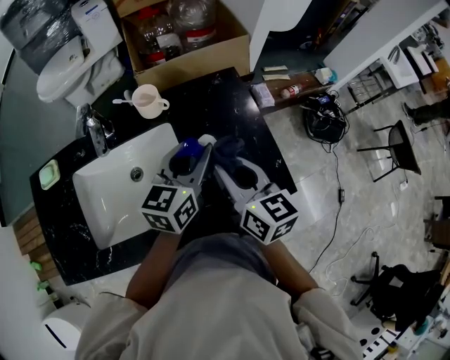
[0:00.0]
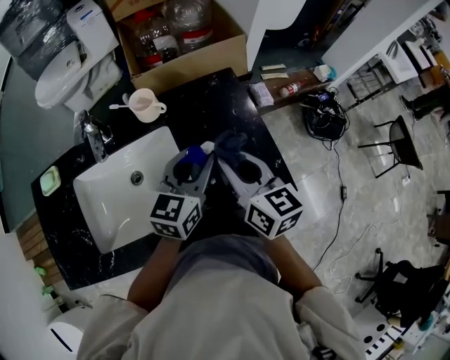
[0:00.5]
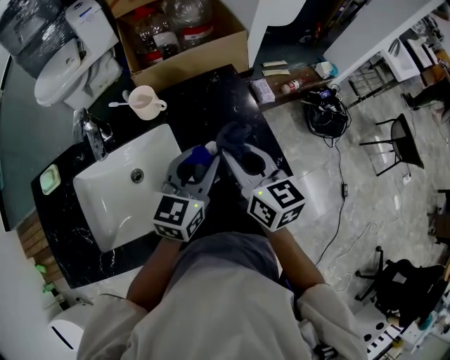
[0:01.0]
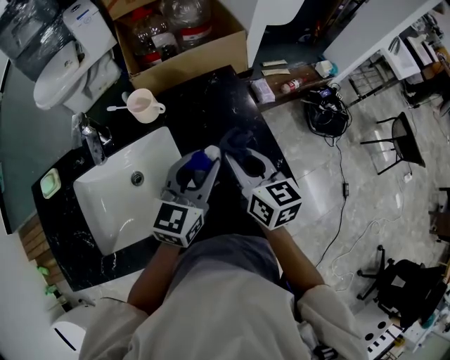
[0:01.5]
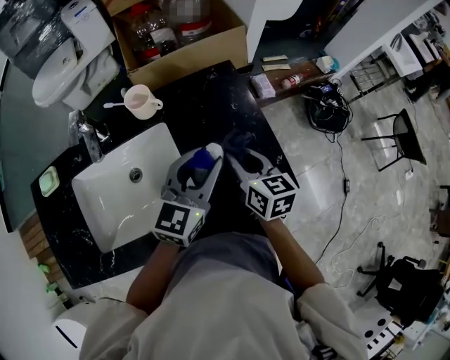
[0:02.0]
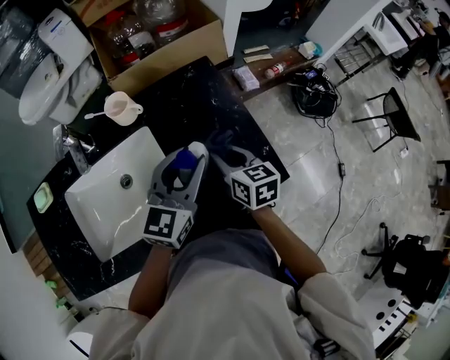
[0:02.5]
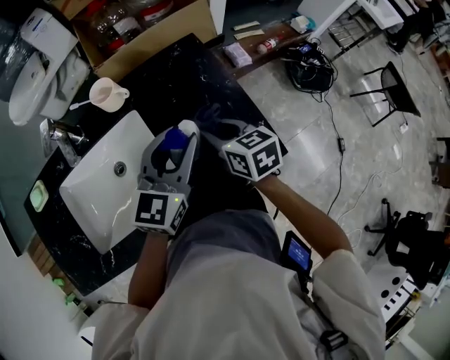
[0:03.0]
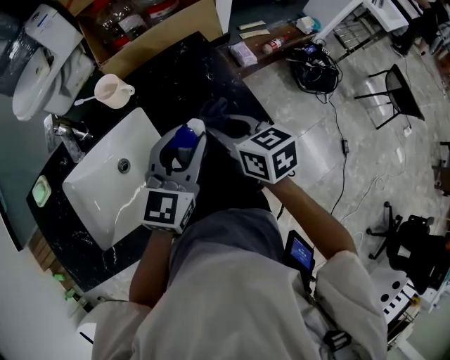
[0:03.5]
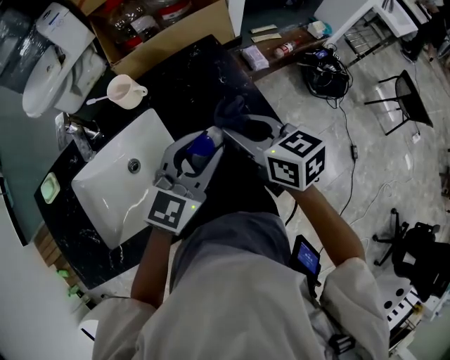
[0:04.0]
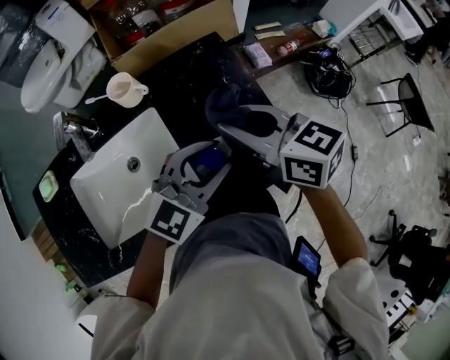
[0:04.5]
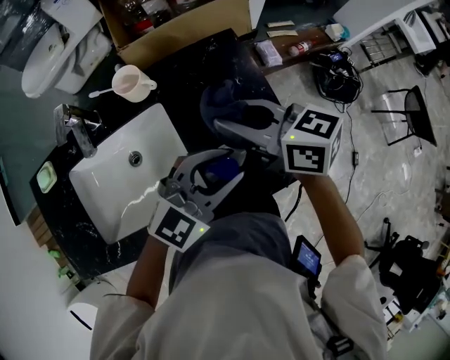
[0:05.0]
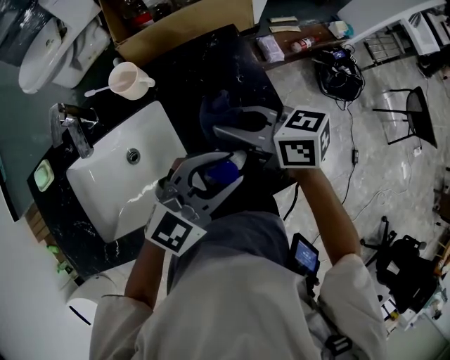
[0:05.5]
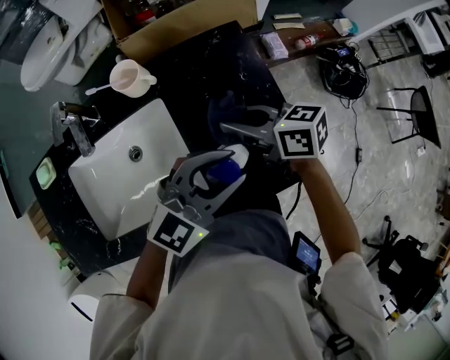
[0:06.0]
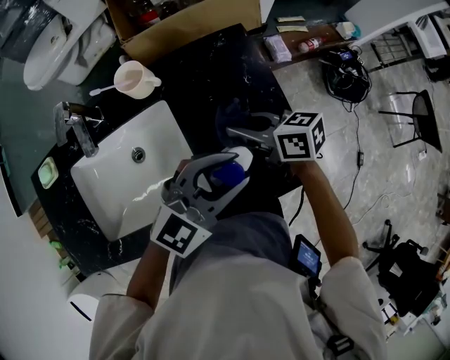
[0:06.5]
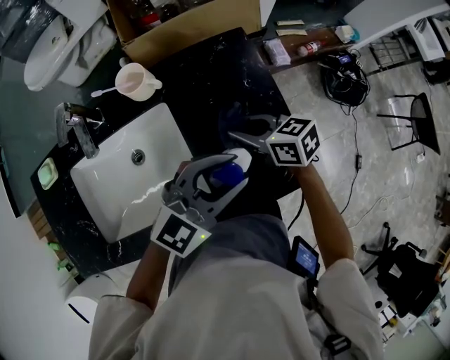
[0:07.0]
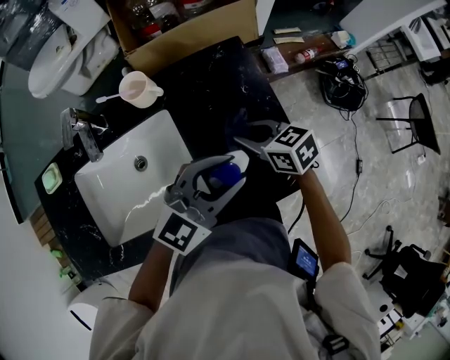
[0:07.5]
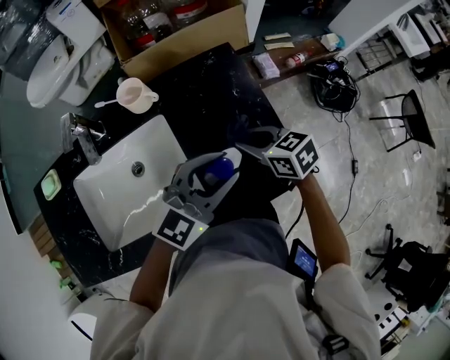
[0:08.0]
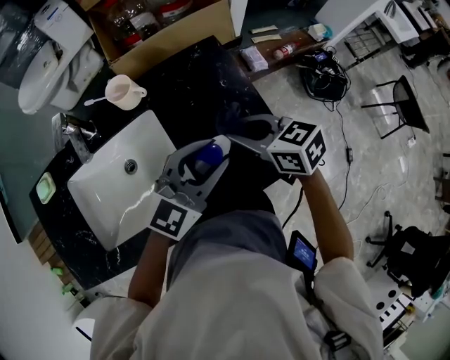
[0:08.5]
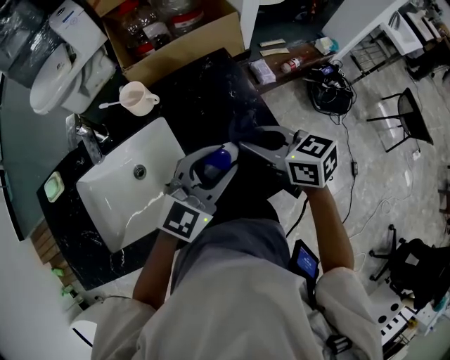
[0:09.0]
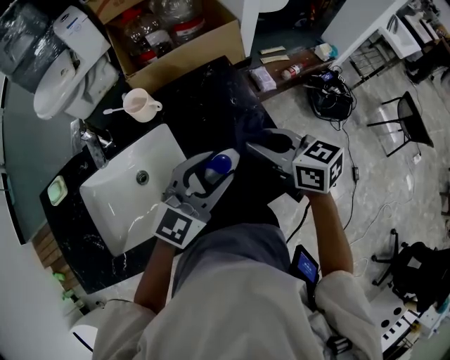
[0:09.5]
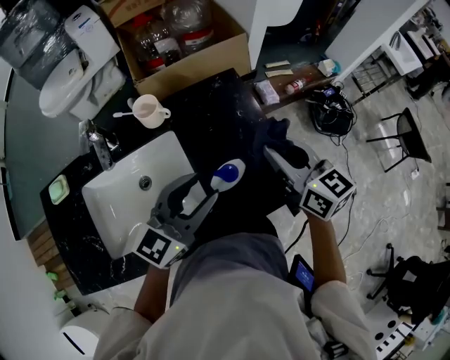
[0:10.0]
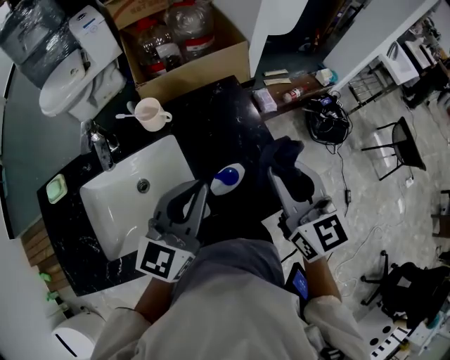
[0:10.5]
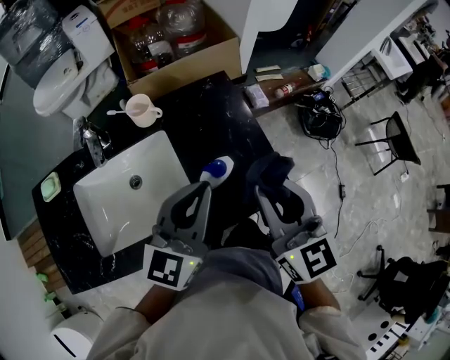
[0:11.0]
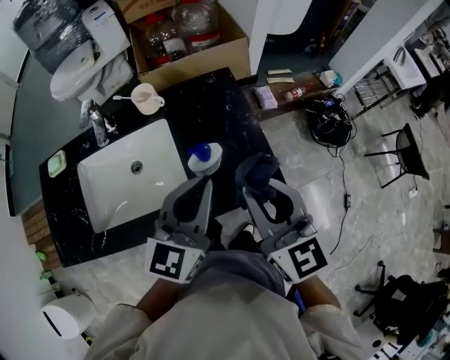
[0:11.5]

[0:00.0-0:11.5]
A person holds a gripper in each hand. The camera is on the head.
0:00.0 to 0:02.0: The right gripper heads downward, covering some 10 cm.
0:02.0 to 0:04.0: The right gripper goes about 5 cm upward.
0:04.0 to 0:06.0: The right gripper ends up about 10 cm from where it was, and rotates some 30 degrees.
0:06.0 to 0:07.5: The right gripper travels downward by some 5 cm, and changes its angle by some 20 degrees.
0:07.5 to 0:09.5: The right gripper goes about 10 cm upward.
0:09.5 to 0:11.5: The left gripper goes roughly 10 cm upward and backward, swivels roughly 30 degrees, and closes up. Meanwhile the right gripper heads backward and upward, covering about 15 cm, and swivels approximately 30 degrees.

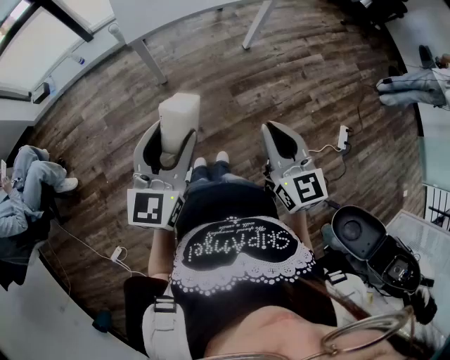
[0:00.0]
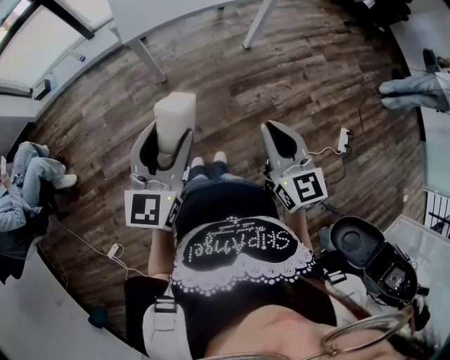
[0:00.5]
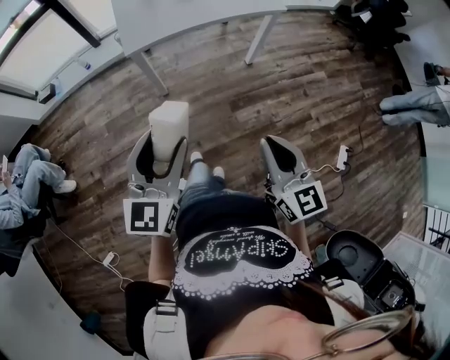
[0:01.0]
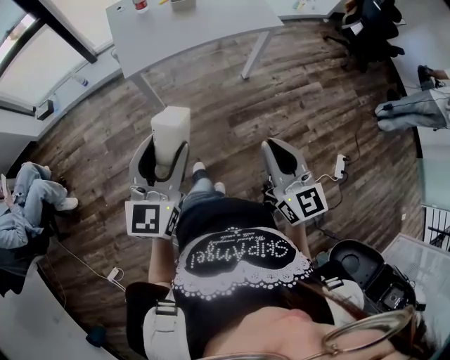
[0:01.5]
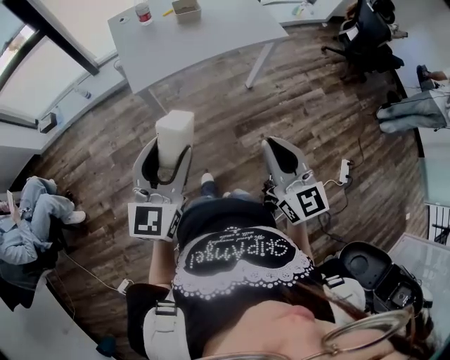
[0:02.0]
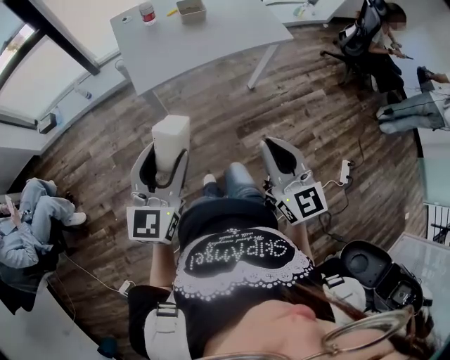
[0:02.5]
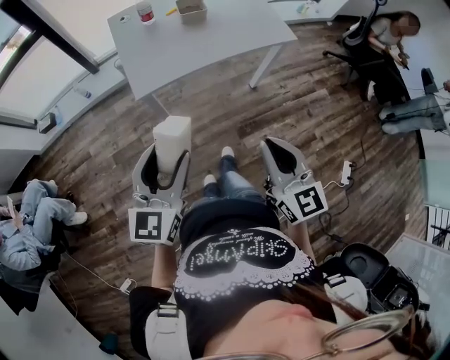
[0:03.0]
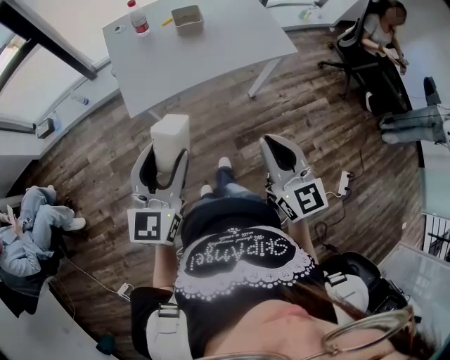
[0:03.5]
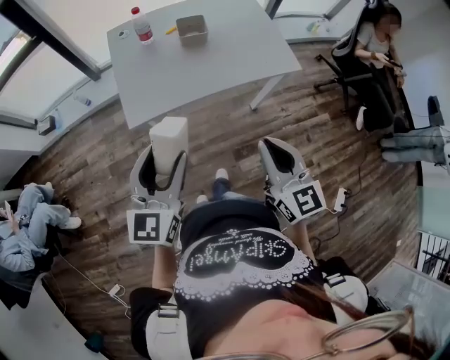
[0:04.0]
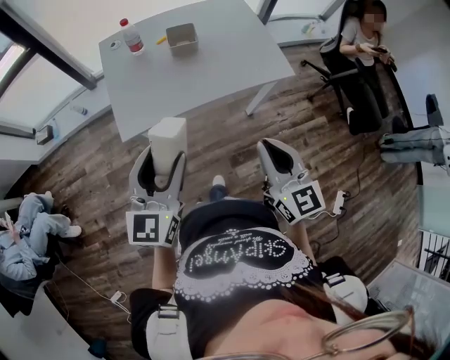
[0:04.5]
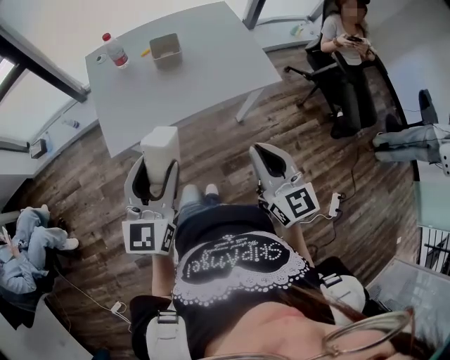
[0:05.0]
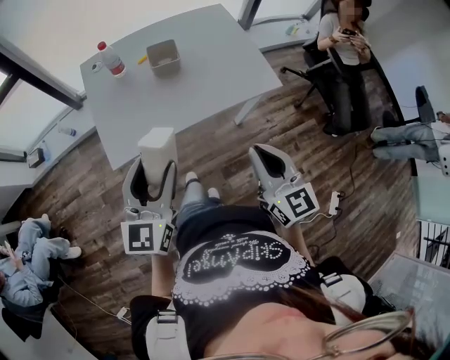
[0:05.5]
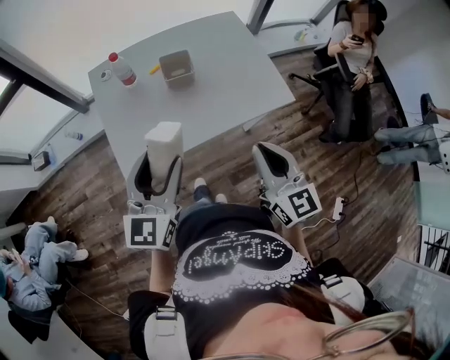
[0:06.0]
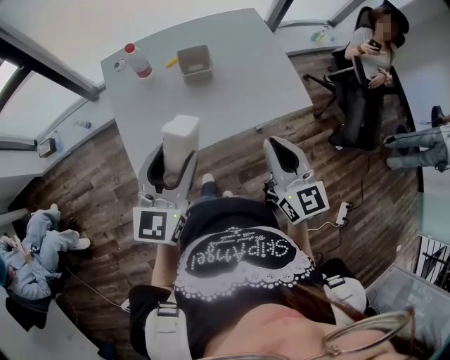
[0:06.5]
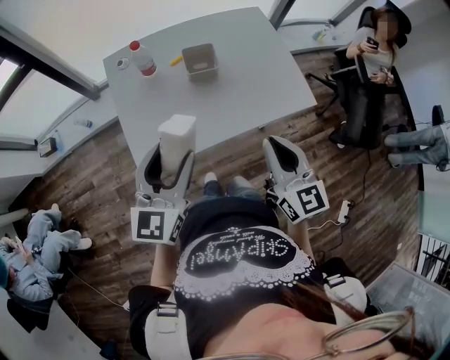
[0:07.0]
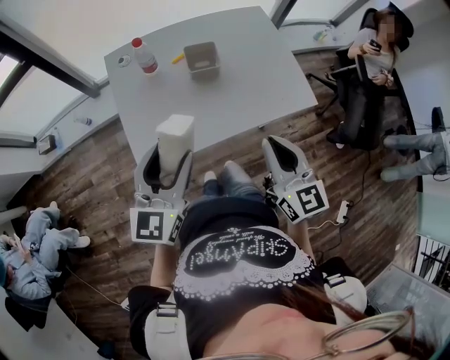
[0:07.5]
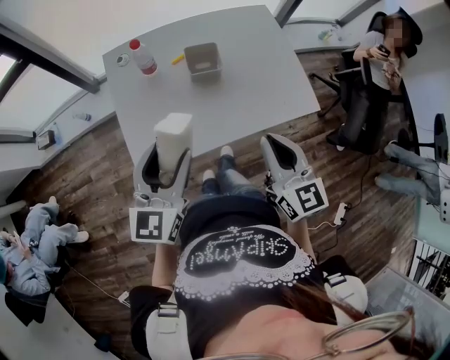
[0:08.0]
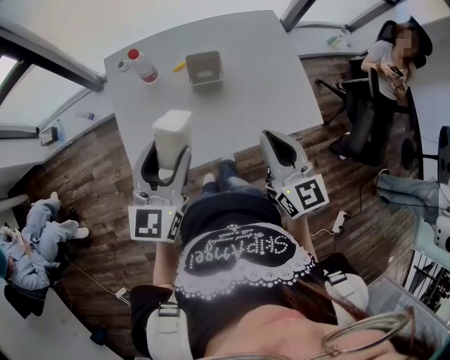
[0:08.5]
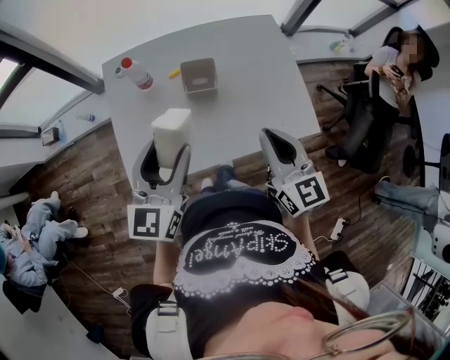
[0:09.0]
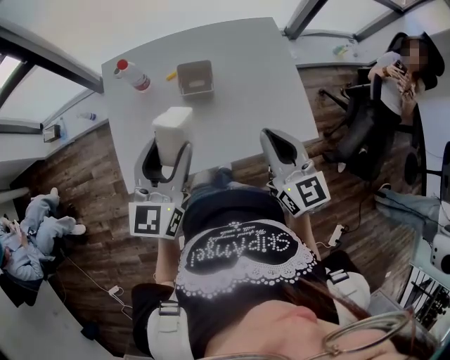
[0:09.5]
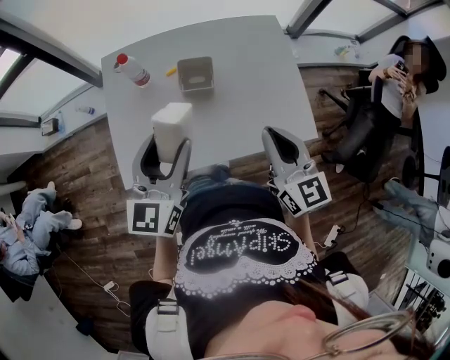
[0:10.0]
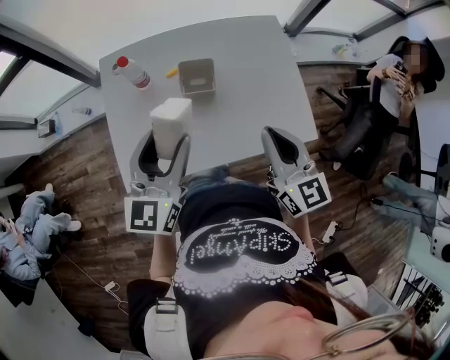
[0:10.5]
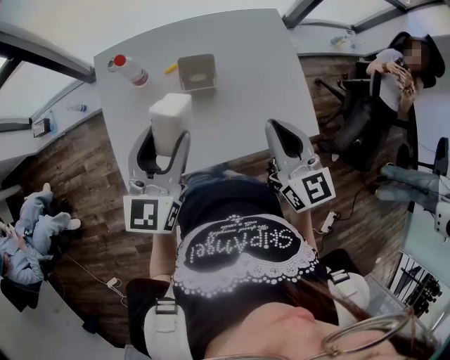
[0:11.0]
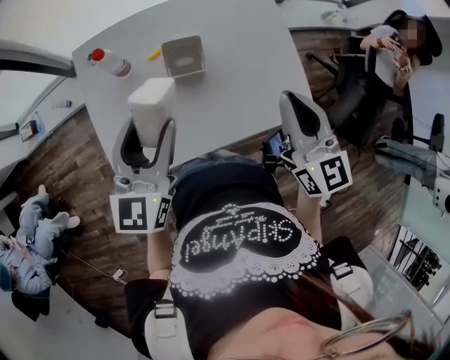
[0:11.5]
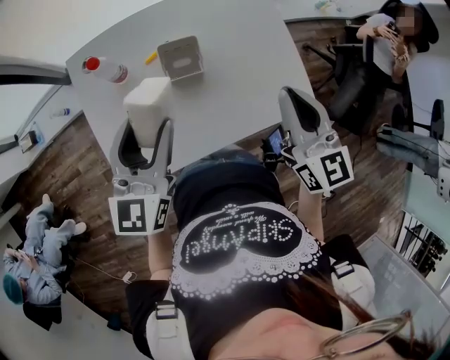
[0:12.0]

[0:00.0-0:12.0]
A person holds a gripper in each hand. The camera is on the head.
0:00.0 to 0:02.0: The grippers both shift forward by about 10 cm.
0:02.0 to 0:04.0: The grippers both shift forward by some 15 cm.
0:04.0 to 0:06.0: Both grippers travel together forward, approximately 15 cm.
0:06.0 to 0:08.0: The right gripper goes approximately 5 cm forward. Meanwhile the left gripper moves about 5 cm.
0:08.0 to 0:10.0: The two grippers go about 10 cm forward and to the right.
0:10.0 to 0:12.0: The two grippers go approximately 10 cm forward.

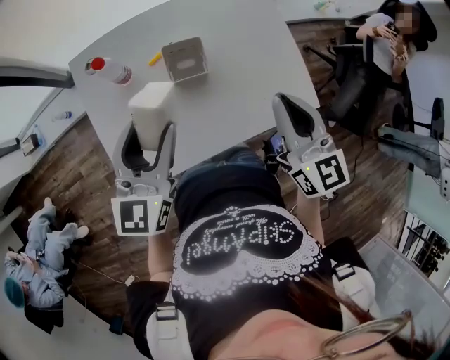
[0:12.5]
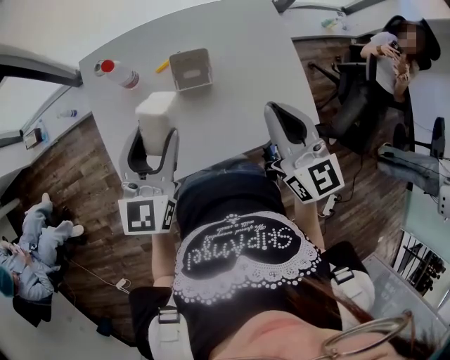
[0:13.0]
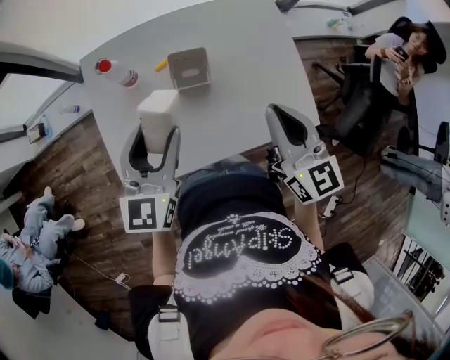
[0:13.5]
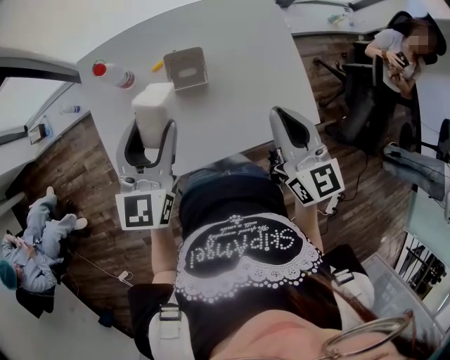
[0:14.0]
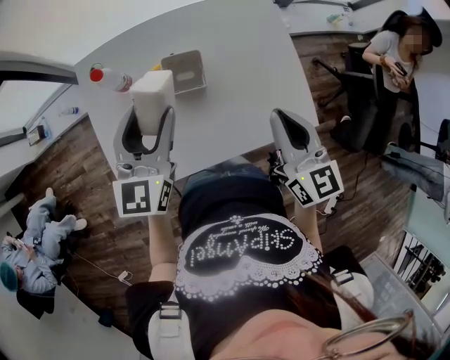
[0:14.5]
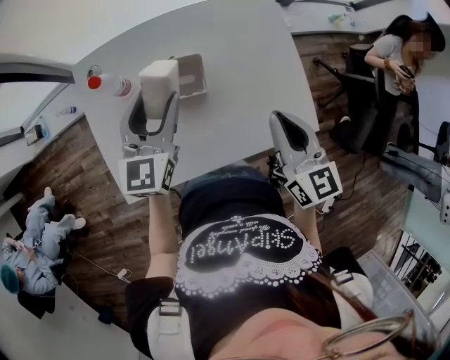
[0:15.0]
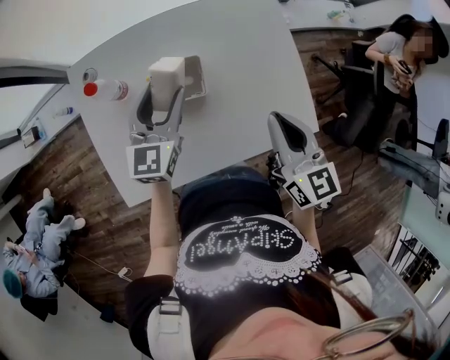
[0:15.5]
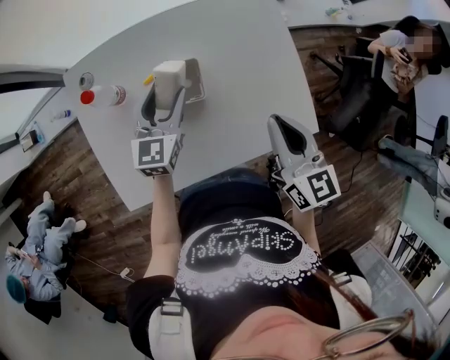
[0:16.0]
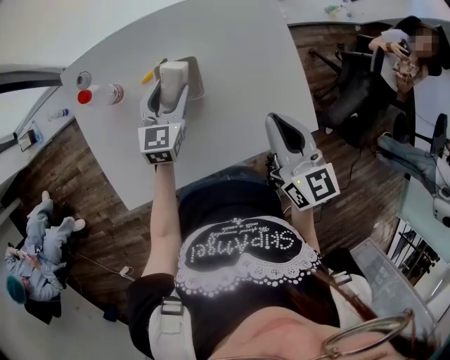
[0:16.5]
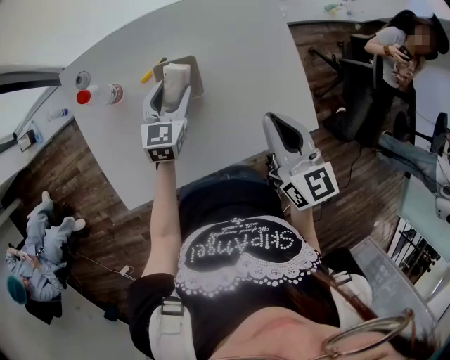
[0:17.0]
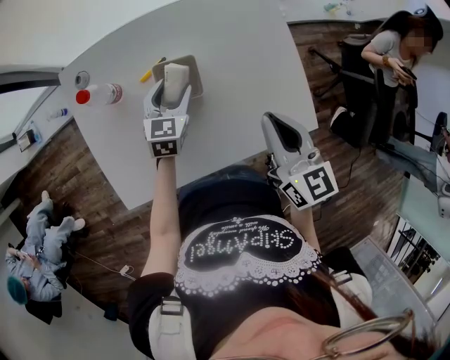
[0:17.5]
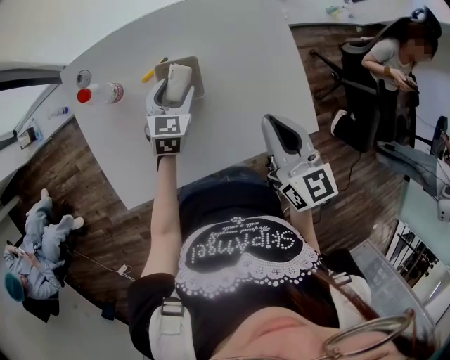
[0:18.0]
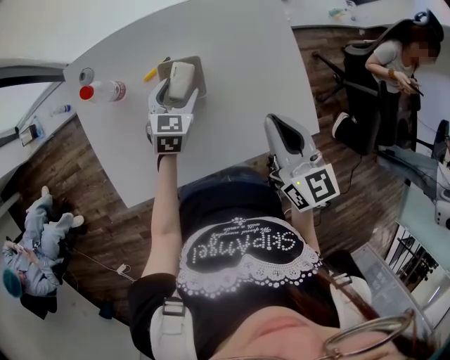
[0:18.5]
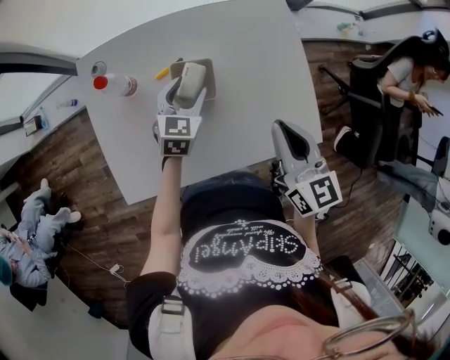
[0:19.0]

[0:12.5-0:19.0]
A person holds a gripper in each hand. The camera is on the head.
0:12.5 to 0:14.5: The left gripper moves forward, approximately 5 cm.
0:14.5 to 0:17.0: The left gripper moves downward and forward, about 20 cm.
0:17.0 to 0:19.0: There are only small adjustments of the grippers.
